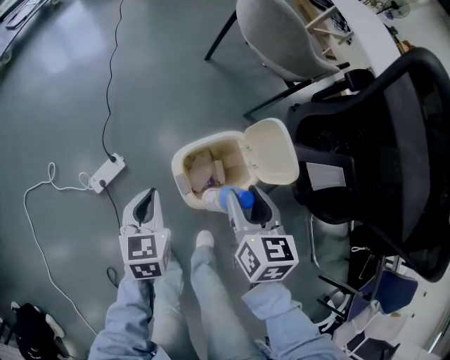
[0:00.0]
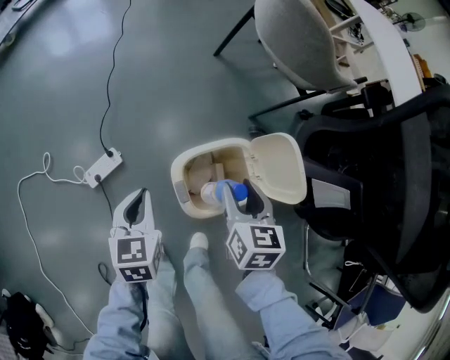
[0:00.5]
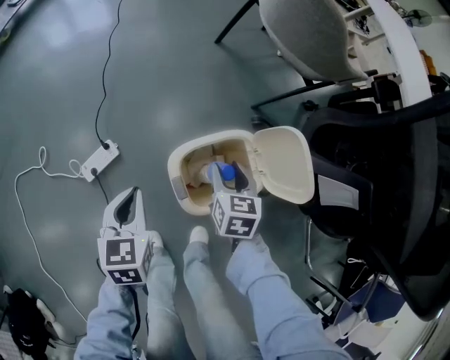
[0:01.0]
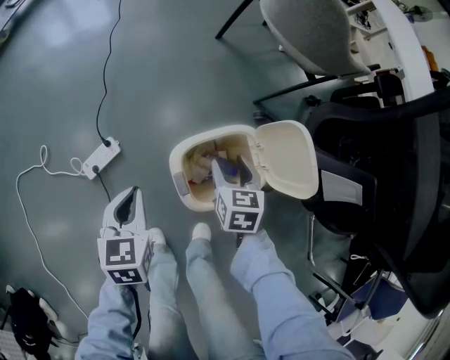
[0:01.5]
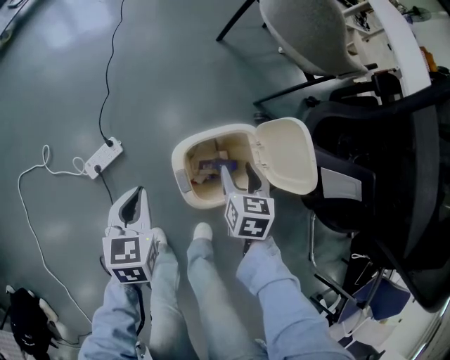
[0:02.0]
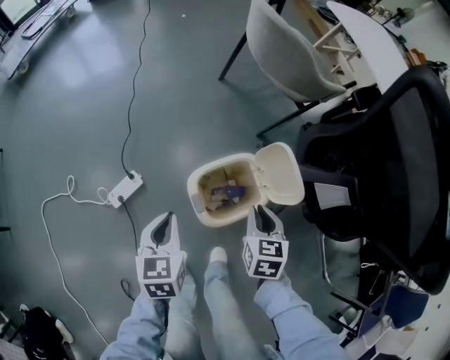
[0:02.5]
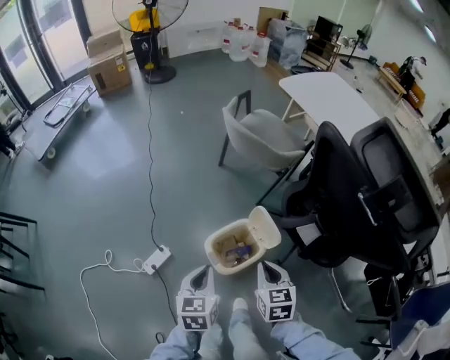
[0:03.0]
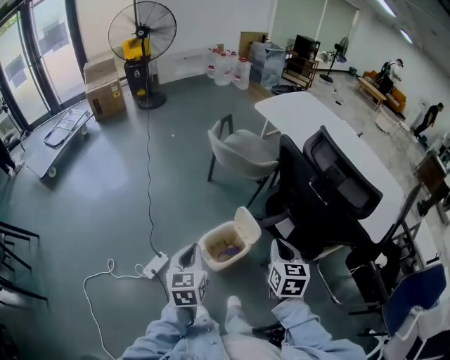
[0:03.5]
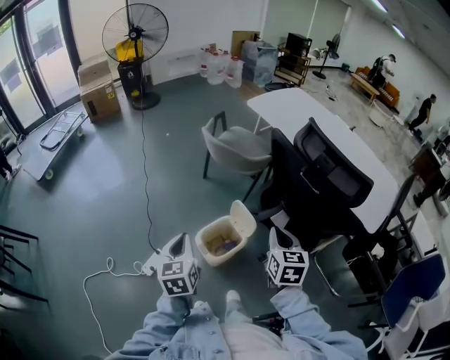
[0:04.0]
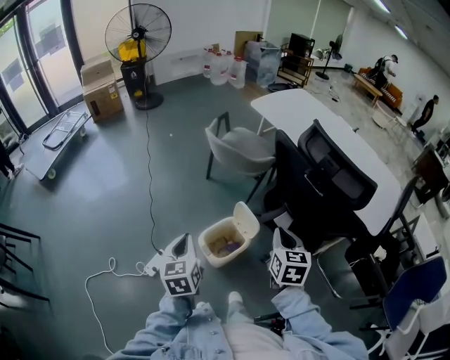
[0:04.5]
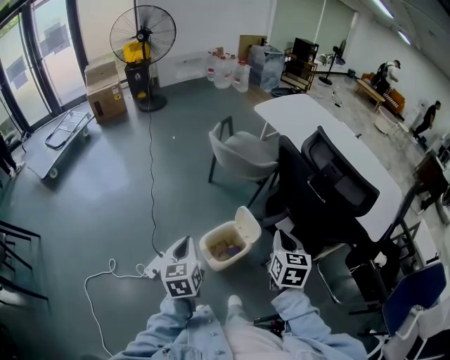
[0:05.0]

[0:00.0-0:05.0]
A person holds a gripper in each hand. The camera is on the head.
0:00.0 to 0:02.5: The right gripper travels downward by approximately 5 cm, and closes.
0:02.5 to 0:05.0: Both grippers travel together upward, some 35 cm. The right gripper swivels about 20 degrees.

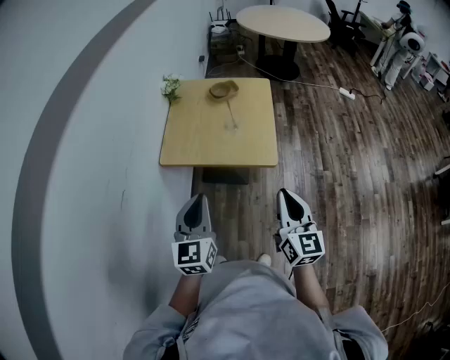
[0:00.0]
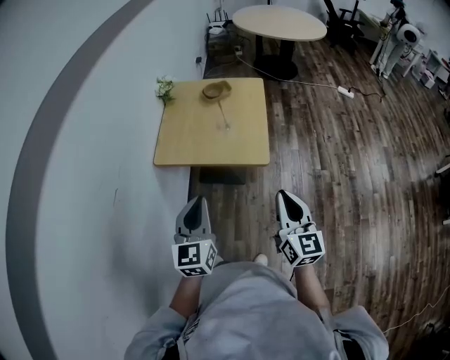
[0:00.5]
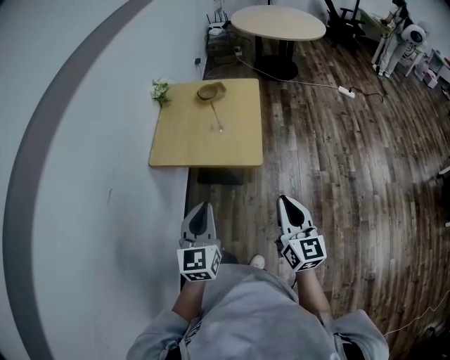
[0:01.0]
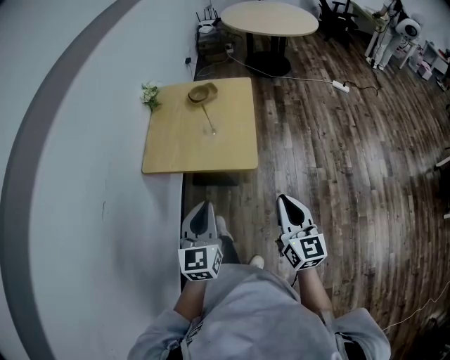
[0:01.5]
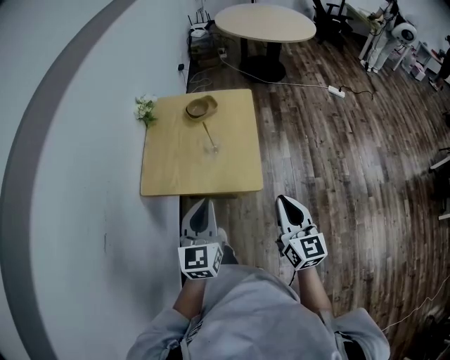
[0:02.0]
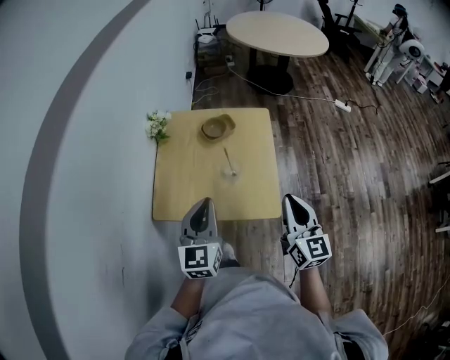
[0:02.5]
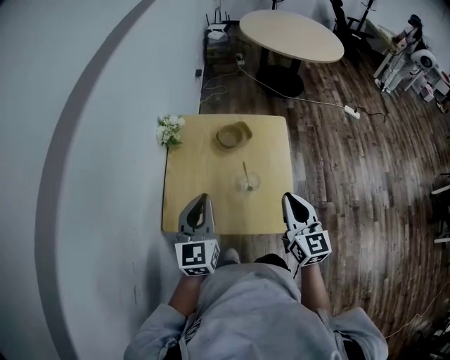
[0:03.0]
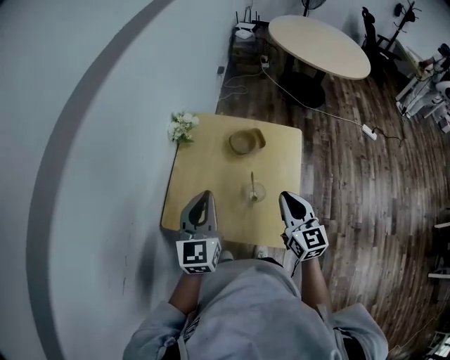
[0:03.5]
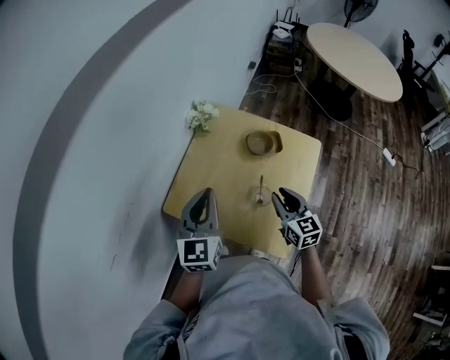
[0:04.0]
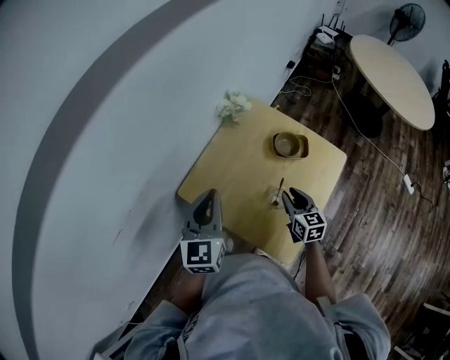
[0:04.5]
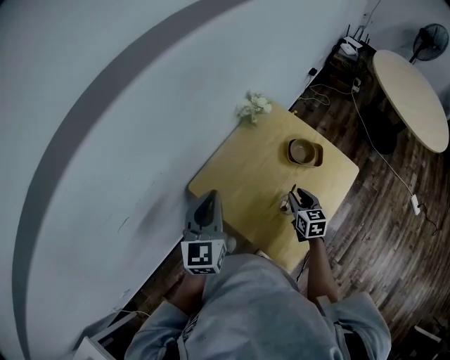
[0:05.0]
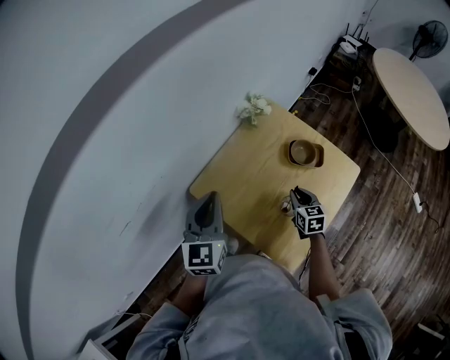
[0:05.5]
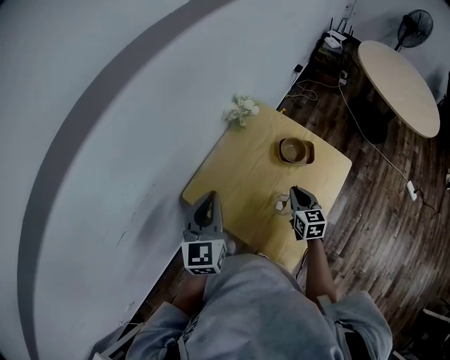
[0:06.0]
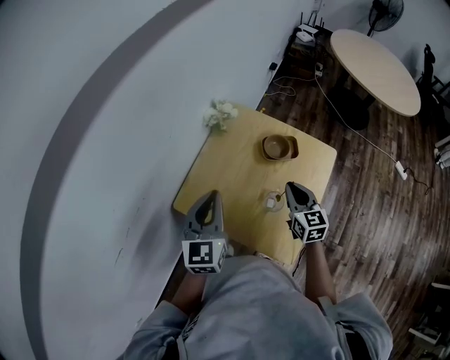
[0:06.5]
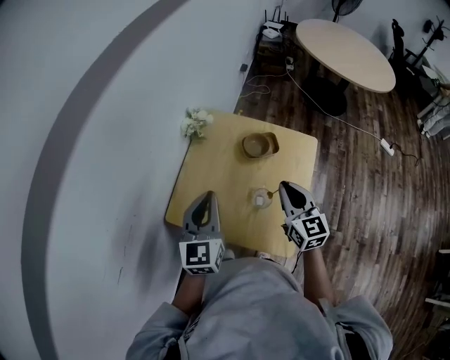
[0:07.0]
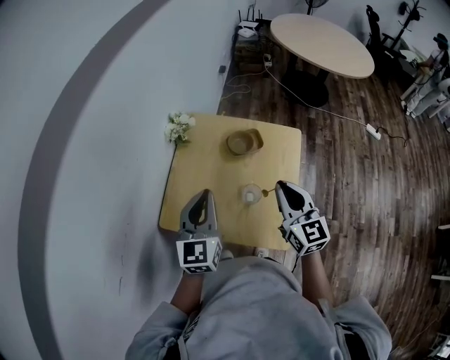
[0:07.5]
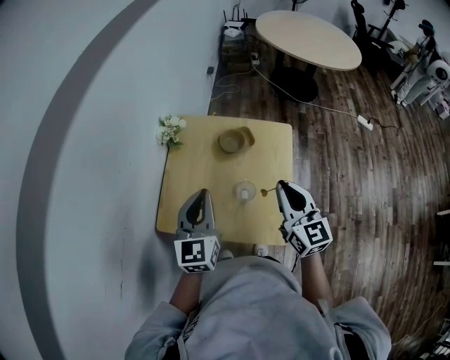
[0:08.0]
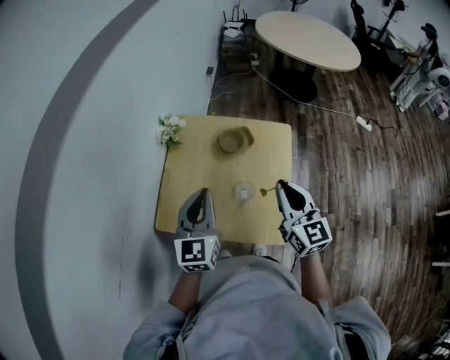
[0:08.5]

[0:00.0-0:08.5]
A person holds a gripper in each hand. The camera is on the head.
0:00.0 to 0:02.0: The grippers both shift forward and to the right by roughly 15 cm.
0:02.0 to 0:04.0: The right gripper moves approximately 40 cm, and changes its angle by some 30 degrees. The left gripper ends up roughly 30 cm from where it was, and turns by about 20 degrees.
0:04.0 to 0:06.5: The right gripper heads forward, covering about 5 cm, and moves approximately 10 cm downward and comes back.
0:06.5 to 0:08.5: The left gripper travels to the right by roughly 5 cm. The right gripper goes approximately 15 cm upward and backward, and rotates roughly 20 degrees.

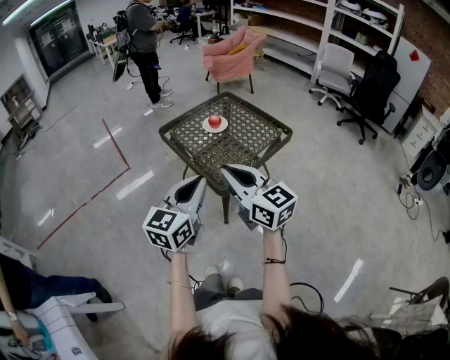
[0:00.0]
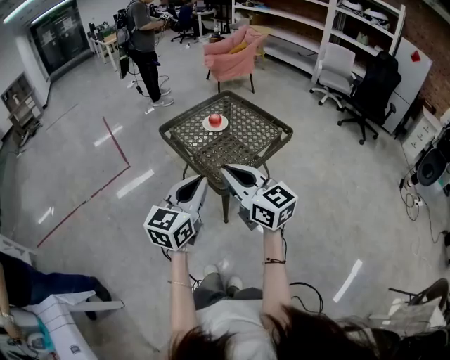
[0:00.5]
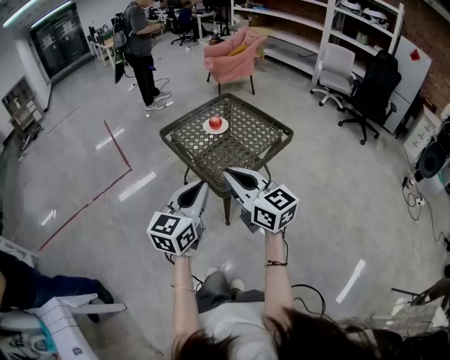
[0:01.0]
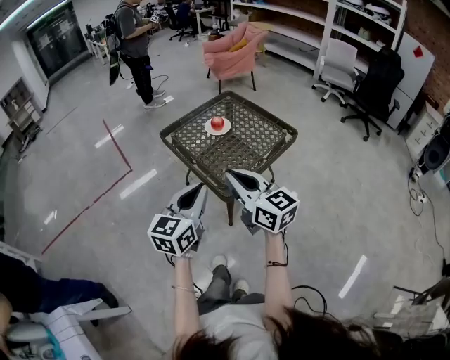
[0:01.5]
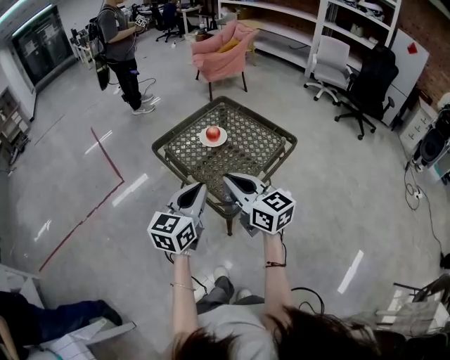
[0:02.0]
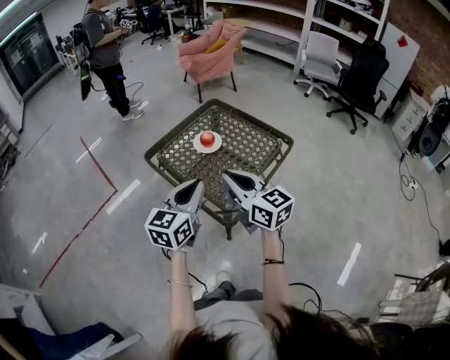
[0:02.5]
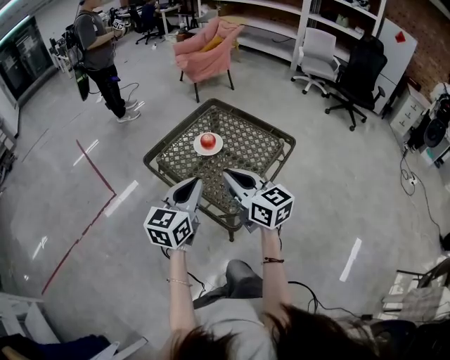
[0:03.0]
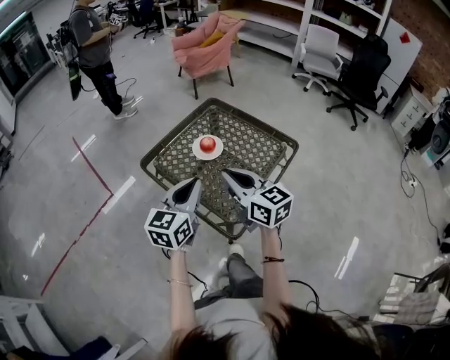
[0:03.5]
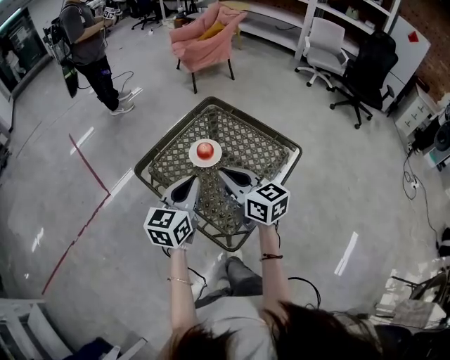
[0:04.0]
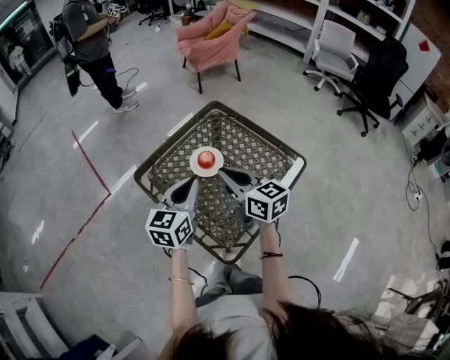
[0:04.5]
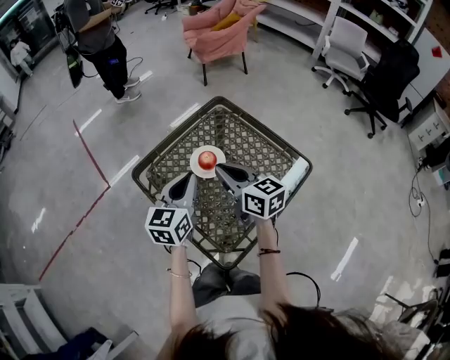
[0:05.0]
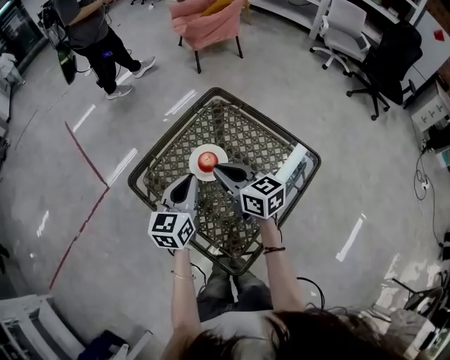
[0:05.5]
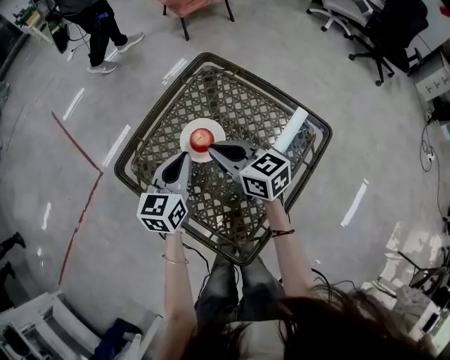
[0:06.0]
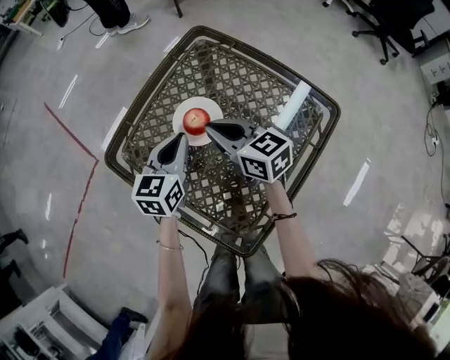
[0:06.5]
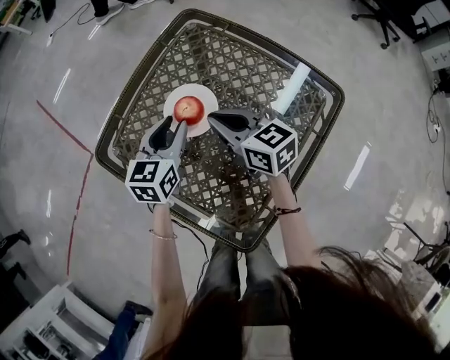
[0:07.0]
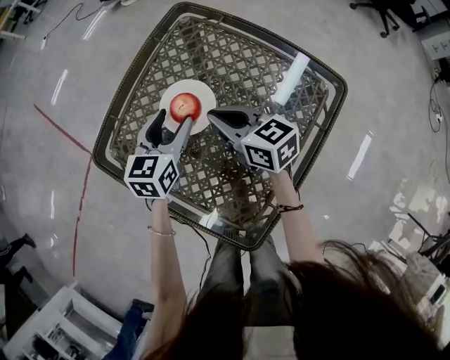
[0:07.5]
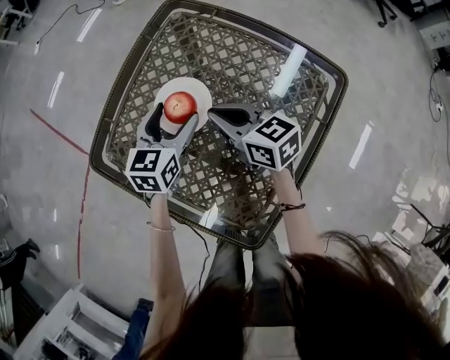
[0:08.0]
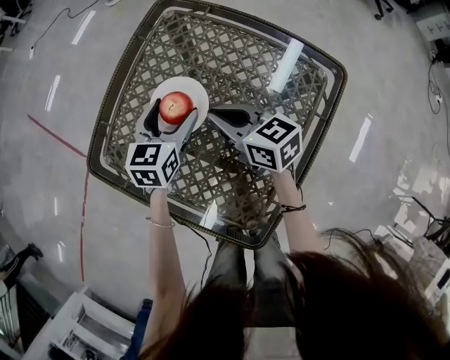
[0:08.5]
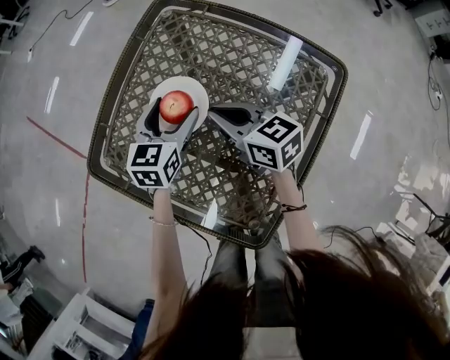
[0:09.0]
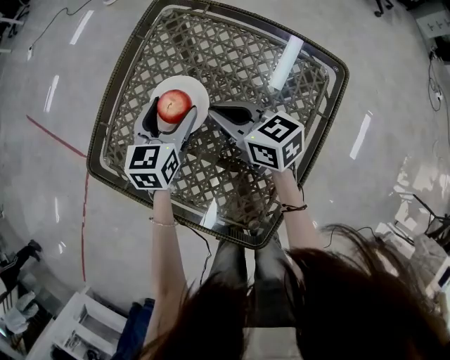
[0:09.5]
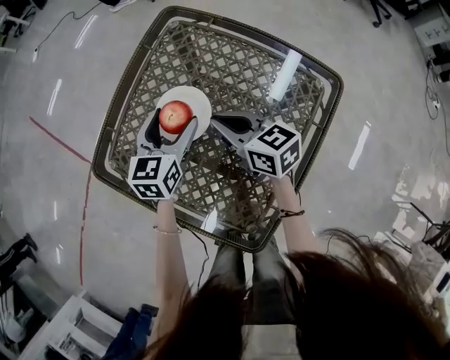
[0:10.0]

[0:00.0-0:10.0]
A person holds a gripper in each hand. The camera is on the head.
0:00.0 to 0:02.0: Both grippers move forward, roughly 15 cm.
0:02.0 to 0:04.0: The two grippers go some 25 cm forward.
0:04.0 to 0:06.0: Both grippers travel together forward and downward, roughly 25 cm.
0:06.0 to 0:08.0: The right gripper shifts about 10 cm downward; the left gripper goes approximately 15 cm downward and forward, and opens up.
0:08.0 to 0:10.0: The grippers move only a little.

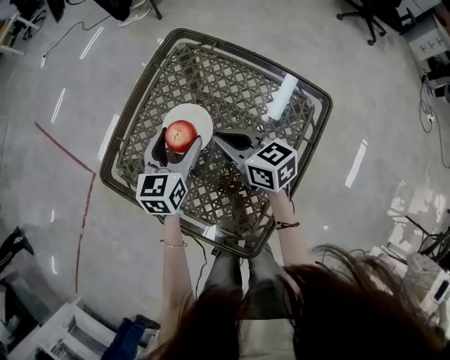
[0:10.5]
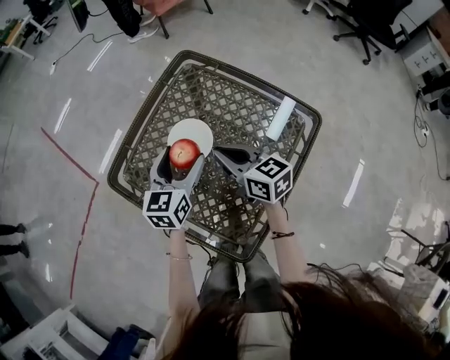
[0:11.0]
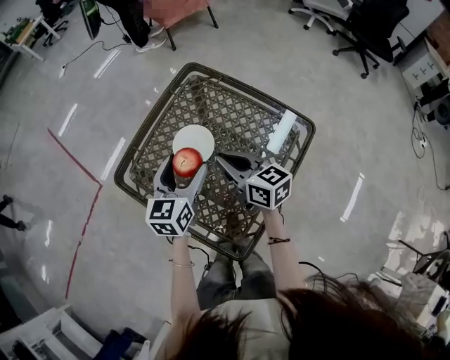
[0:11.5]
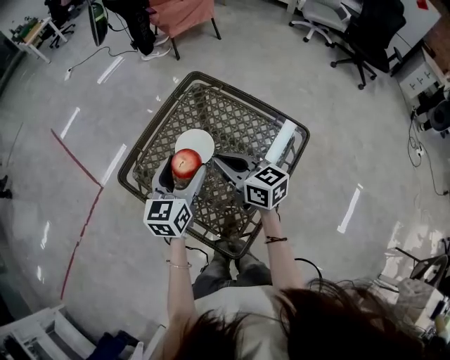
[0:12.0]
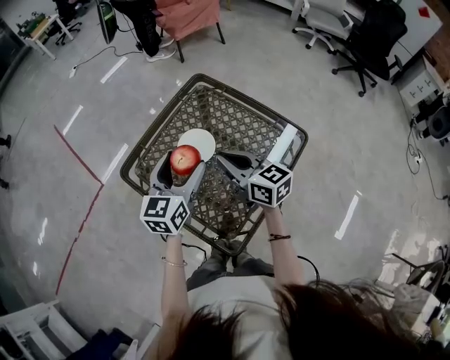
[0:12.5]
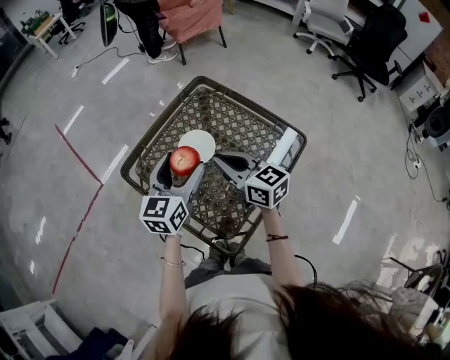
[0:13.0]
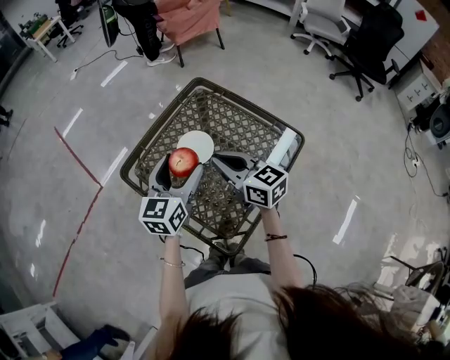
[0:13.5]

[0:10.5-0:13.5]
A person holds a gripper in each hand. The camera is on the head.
0:10.5 to 0:12.0: The grippers both shift upward and backward by approximately 15 cm.
0:12.0 to 0:13.5: The right gripper shifts by about 5 cm.
